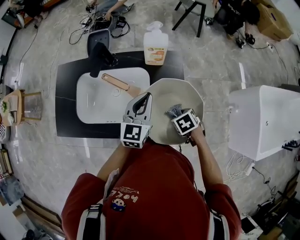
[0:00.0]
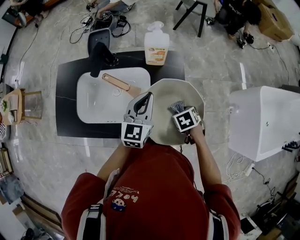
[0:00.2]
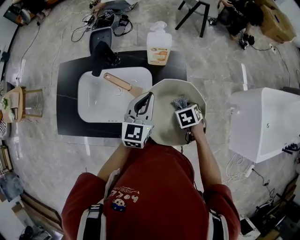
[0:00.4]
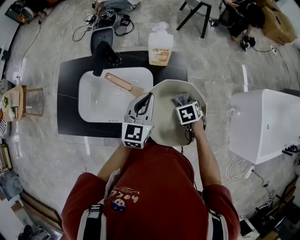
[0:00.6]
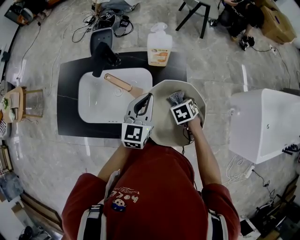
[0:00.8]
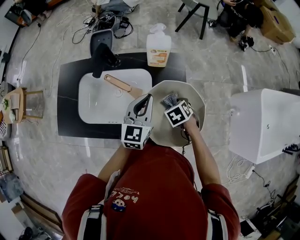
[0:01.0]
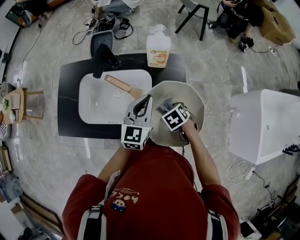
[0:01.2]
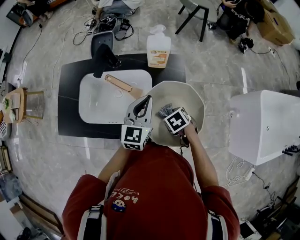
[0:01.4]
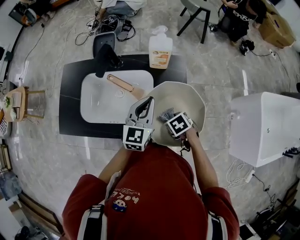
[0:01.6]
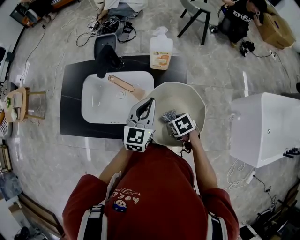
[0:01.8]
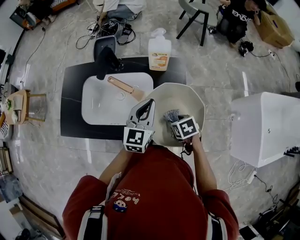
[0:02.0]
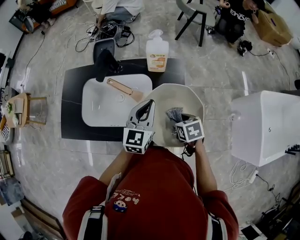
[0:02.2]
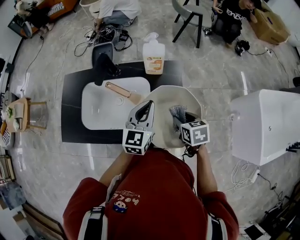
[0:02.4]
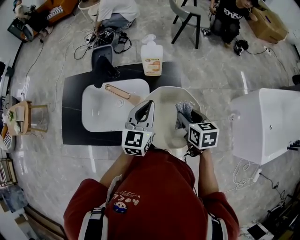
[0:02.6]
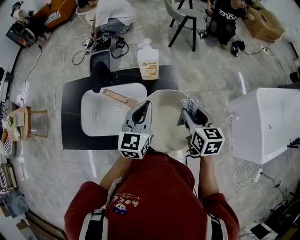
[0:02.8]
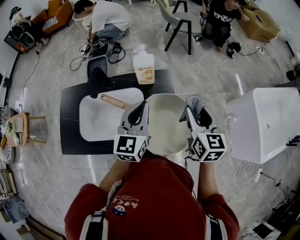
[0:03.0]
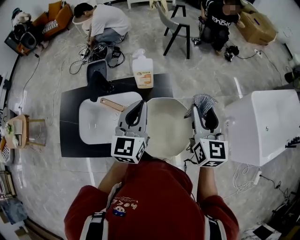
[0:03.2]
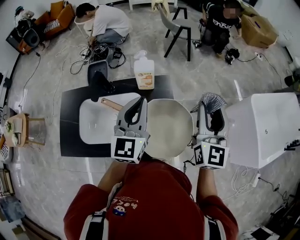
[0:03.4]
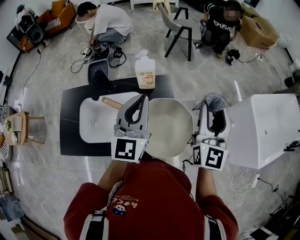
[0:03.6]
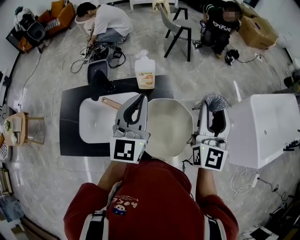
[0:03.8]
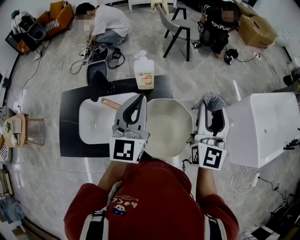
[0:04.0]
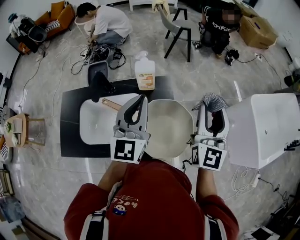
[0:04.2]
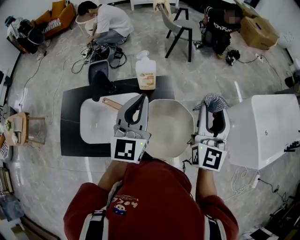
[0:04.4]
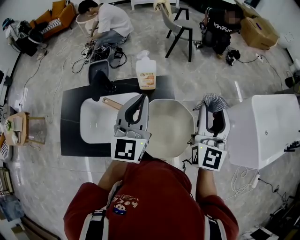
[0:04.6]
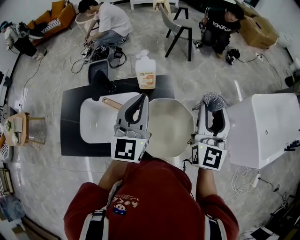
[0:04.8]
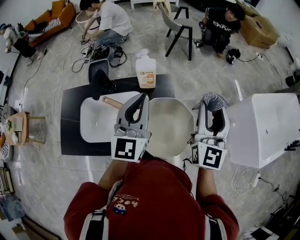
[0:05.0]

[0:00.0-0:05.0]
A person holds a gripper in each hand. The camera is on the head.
0:01.6 to 0:03.4: The right gripper is displaced upward by about 35 cm, and tilts its fingers approximately 80 degrees upward; the left gripper shifts about 15 cm upward.
0:03.4 to 0:05.0: The grippers make only small movements.

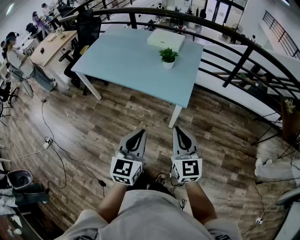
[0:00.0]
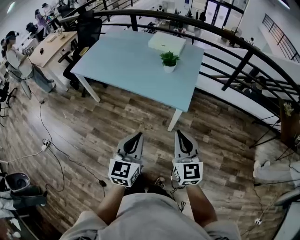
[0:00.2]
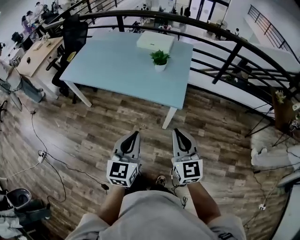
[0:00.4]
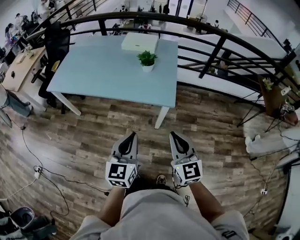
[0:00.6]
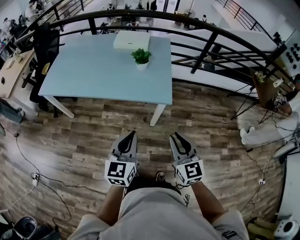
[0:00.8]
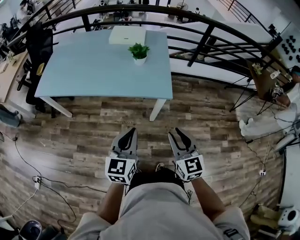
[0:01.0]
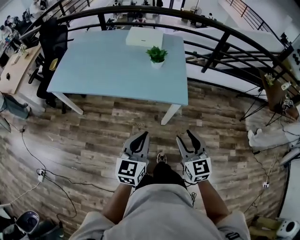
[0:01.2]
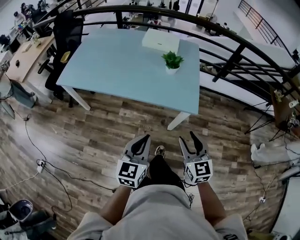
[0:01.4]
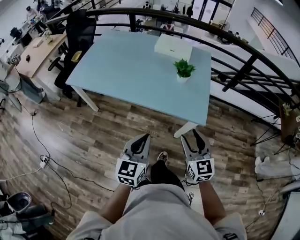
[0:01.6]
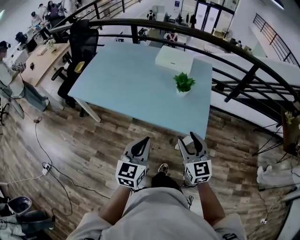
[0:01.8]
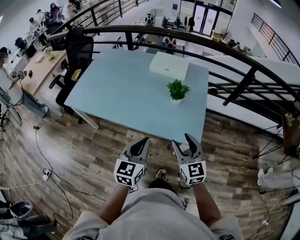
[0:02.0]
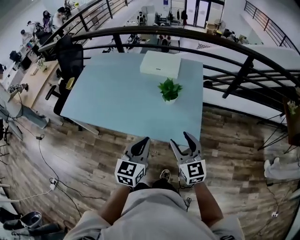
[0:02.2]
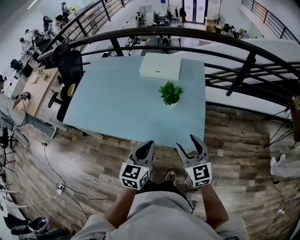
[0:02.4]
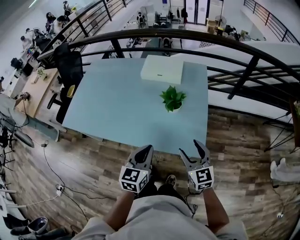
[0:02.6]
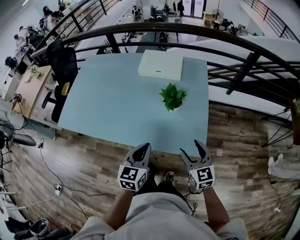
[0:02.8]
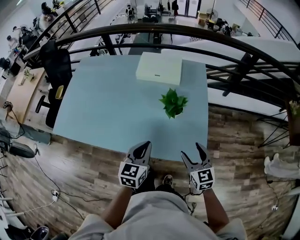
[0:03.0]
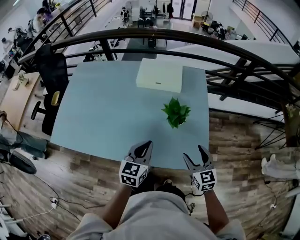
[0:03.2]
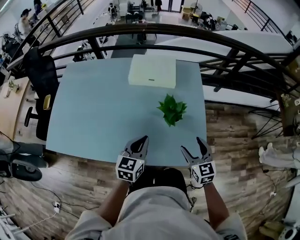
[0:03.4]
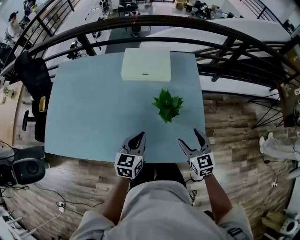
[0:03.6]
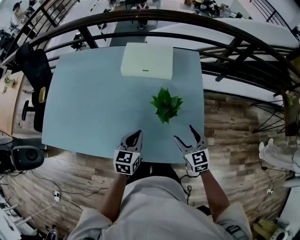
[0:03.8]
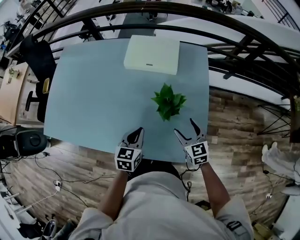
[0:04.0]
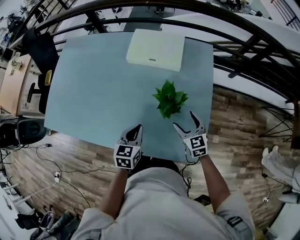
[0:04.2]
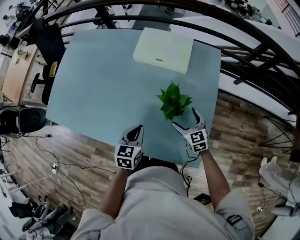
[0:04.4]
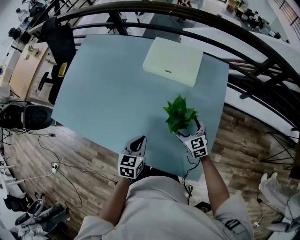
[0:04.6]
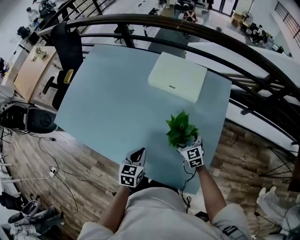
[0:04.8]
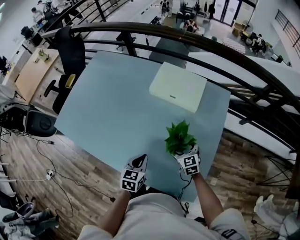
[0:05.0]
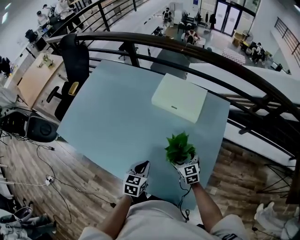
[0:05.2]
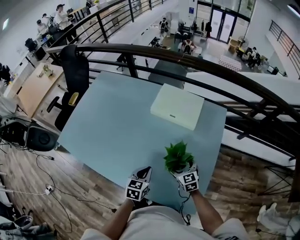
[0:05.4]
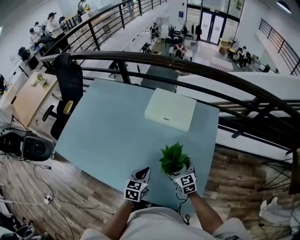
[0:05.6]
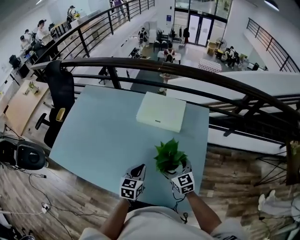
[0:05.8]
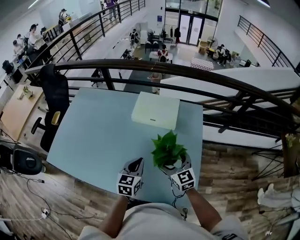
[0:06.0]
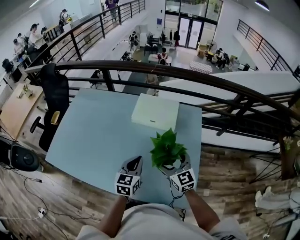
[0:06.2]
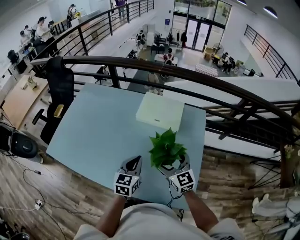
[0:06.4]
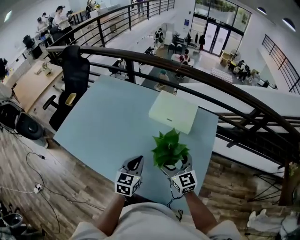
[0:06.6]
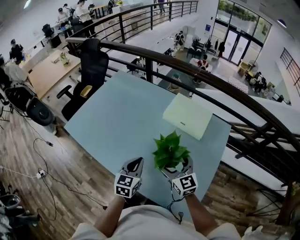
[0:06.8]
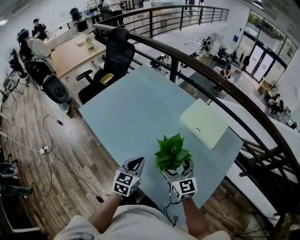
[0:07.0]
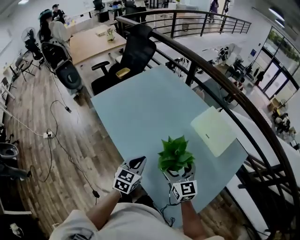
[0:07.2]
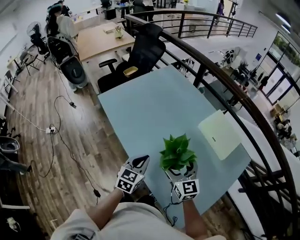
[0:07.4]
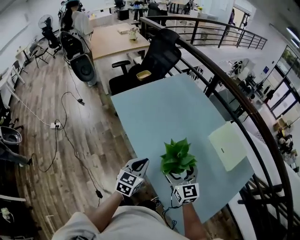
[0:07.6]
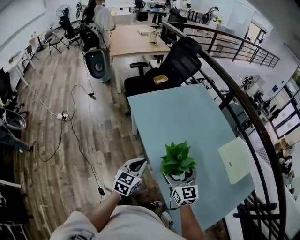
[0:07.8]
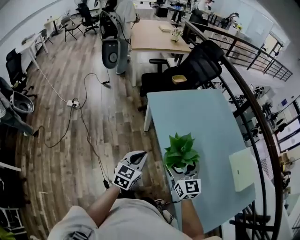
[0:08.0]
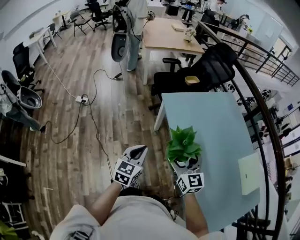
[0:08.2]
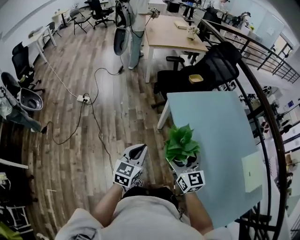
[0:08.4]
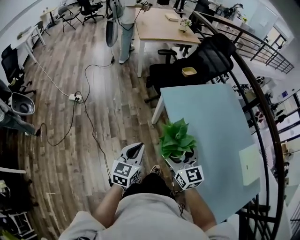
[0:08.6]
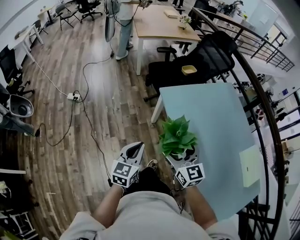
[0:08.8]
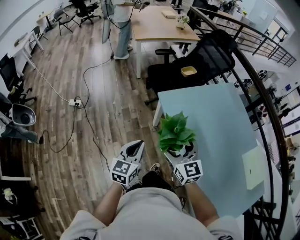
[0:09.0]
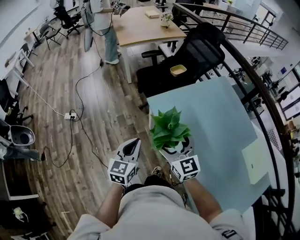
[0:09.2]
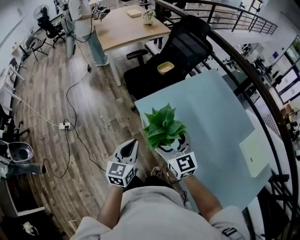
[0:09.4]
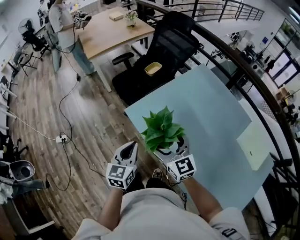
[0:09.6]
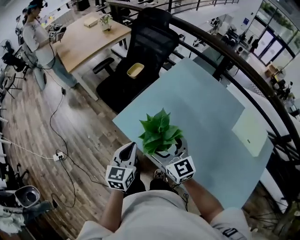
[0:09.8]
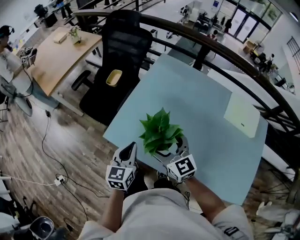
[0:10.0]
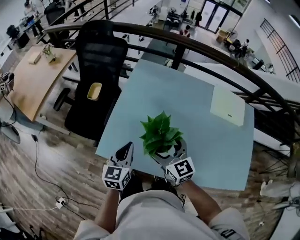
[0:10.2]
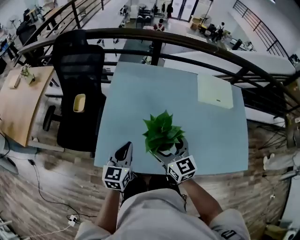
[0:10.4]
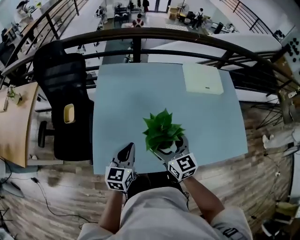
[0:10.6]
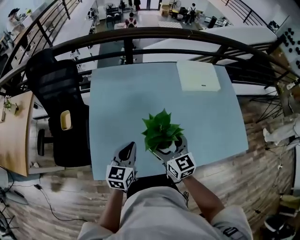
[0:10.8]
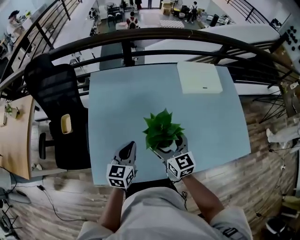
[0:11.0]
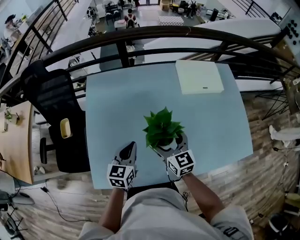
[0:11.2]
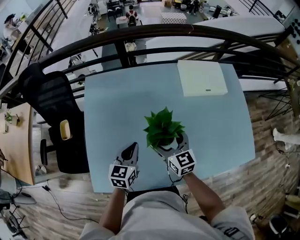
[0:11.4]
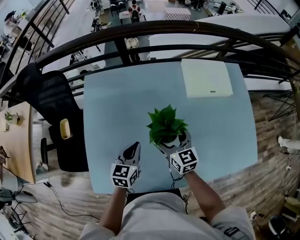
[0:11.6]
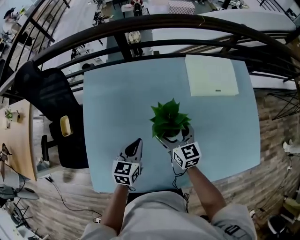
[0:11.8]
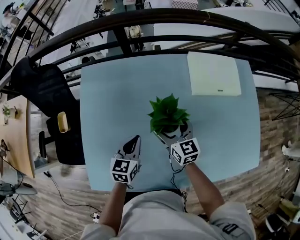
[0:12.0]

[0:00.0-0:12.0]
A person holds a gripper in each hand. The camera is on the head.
0:00.0 to 0:01.6: The right gripper shifts approximately 20 cm to the left, forward and downward, and opens. The left gripper heads to the left and forward, covering roughly 20 cm.
0:01.6 to 0:03.0: Both grippers travel together forward, about 25 cm.
0:03.0 to 0:04.4: The left gripper heads forward and downward, covering roughly 15 cm. Meanwhile the right gripper is displaced forward and downward by roughly 25 cm.
0:04.4 to 0:06.0: The right gripper is displaced upward by roughly 15 cm. The left gripper travels upward and forward by about 10 cm.
0:06.0 to 0:07.6: The right gripper changes place by some 30 cm, and changes its angle by about 40 degrees. The left gripper ends up about 30 cm from where it was, and swivels roughly 40 degrees.
0:07.6 to 0:09.0: The grippers both shift to the left and forward by about 35 cm. The left gripper swivels some 20 degrees.
0:09.0 to 0:10.4: The right gripper moves approximately 30 cm, and rotates some 60 degrees. The left gripper shifts by roughly 40 cm, and turns by some 60 degrees.
0:10.4 to 0:12.0: The two grippers go roughly 25 cm forward, to the right and downward.

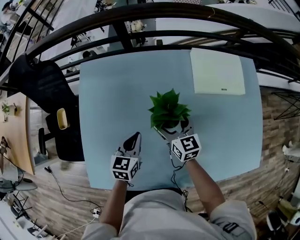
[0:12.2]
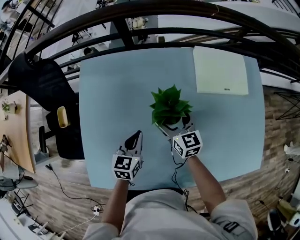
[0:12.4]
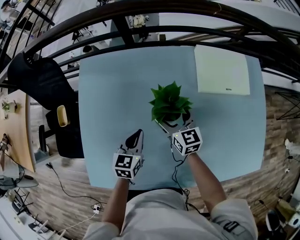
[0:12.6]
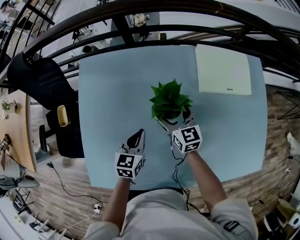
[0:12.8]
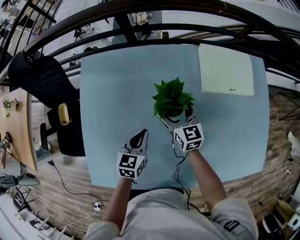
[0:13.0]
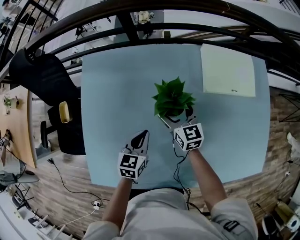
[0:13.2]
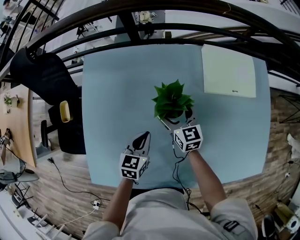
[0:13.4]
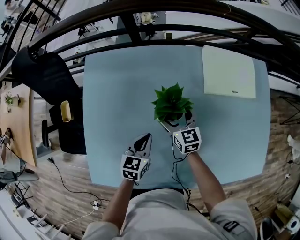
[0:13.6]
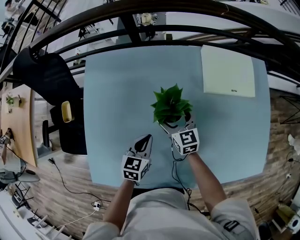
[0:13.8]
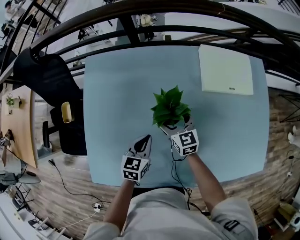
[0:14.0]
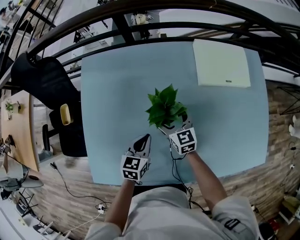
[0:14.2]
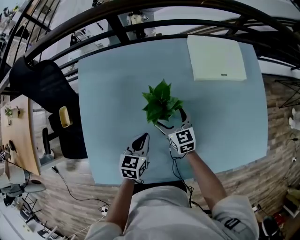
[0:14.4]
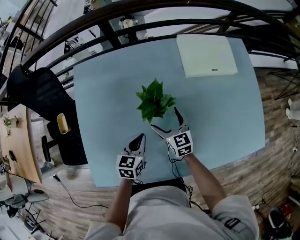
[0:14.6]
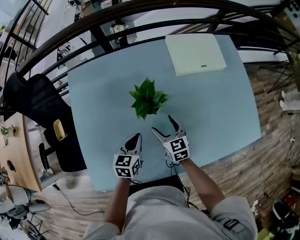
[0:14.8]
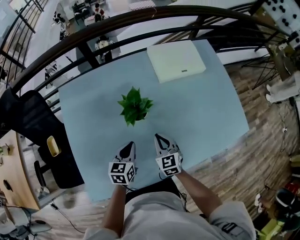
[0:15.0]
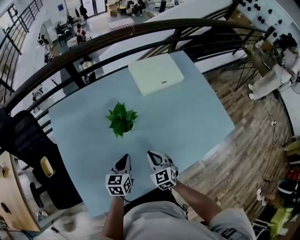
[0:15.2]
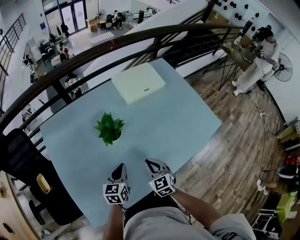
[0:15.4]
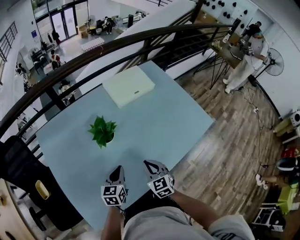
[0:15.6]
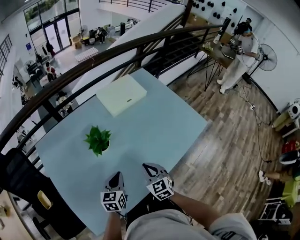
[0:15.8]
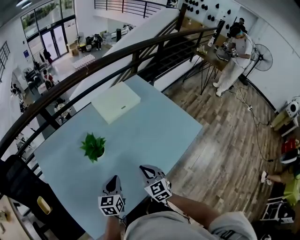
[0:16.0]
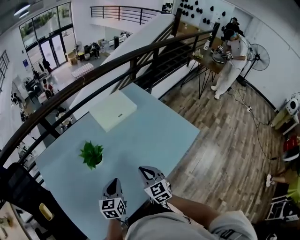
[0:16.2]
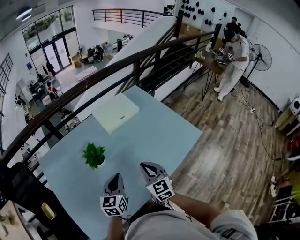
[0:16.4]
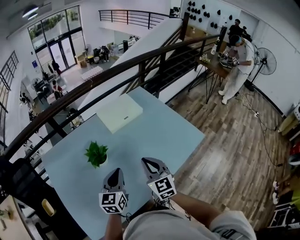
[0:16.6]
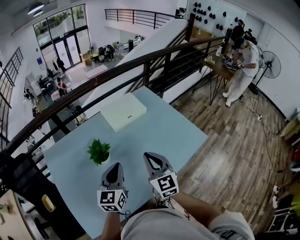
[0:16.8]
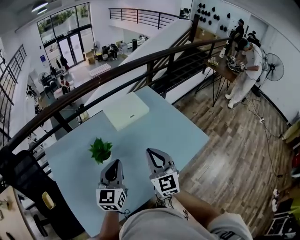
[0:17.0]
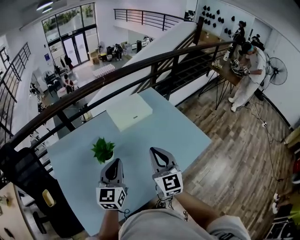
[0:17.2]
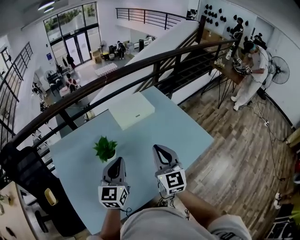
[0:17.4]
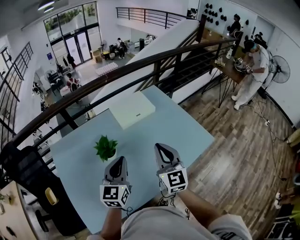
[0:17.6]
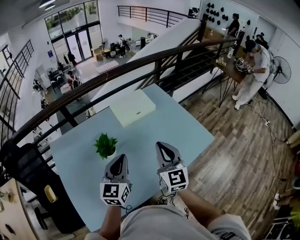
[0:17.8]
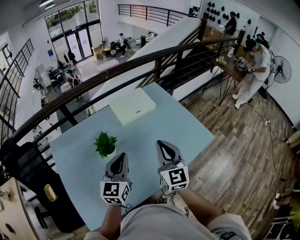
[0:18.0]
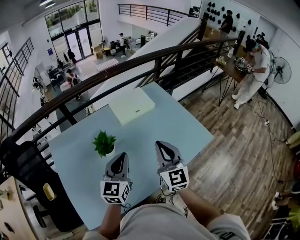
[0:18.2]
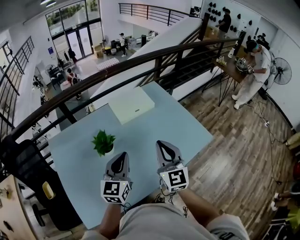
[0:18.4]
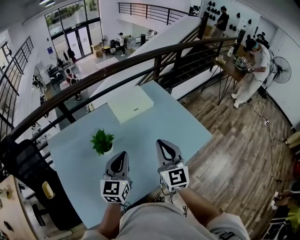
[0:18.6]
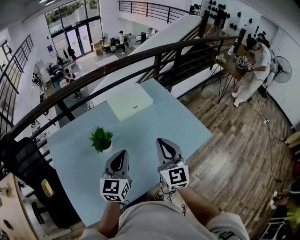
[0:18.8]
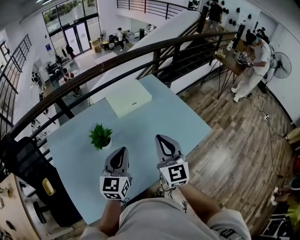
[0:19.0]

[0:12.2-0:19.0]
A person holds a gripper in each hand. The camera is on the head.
0:12.2 to 0:13.6: The right gripper changes place by about 5 cm.
0:13.6 to 0:15.0: The left gripper ends up approximately 5 cm from where it was; the right gripper goes about 15 cm backward, rotates roughly 20 degrees, and closes up.
0:15.0 to 0:16.2: The right gripper goes roughly 20 cm upward, to the right and backward; the left gripper heads to the right and upward, covering roughly 15 cm.
0:16.2 to 0:17.6: Both grippers move upward, some 15 cm. The left gripper turns by about 20 degrees. The right gripper rotates some 20 degrees.
0:17.6 to 0:19.0: There are only small adjustments of the grippers.
